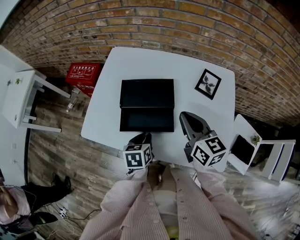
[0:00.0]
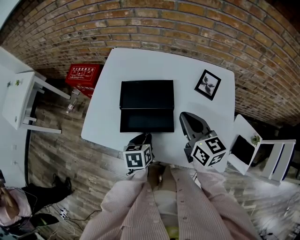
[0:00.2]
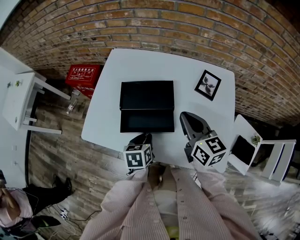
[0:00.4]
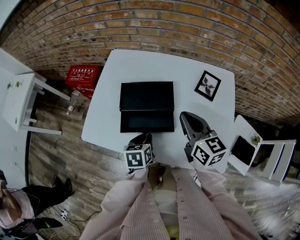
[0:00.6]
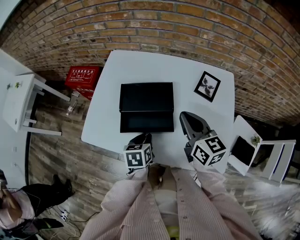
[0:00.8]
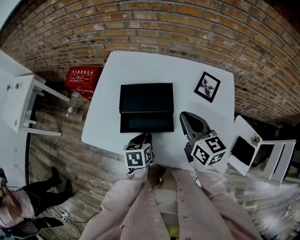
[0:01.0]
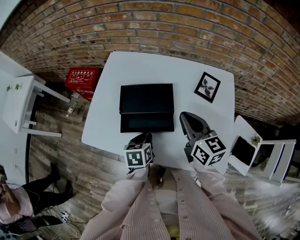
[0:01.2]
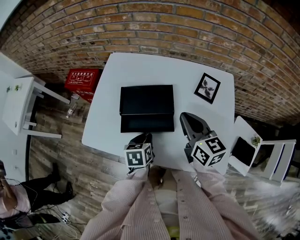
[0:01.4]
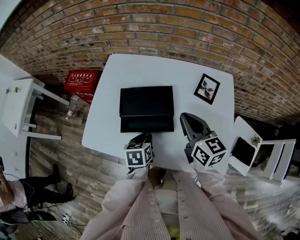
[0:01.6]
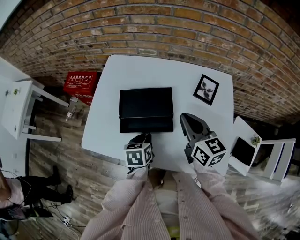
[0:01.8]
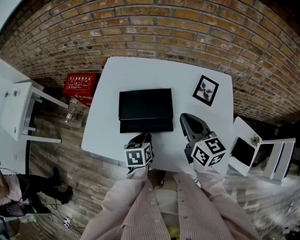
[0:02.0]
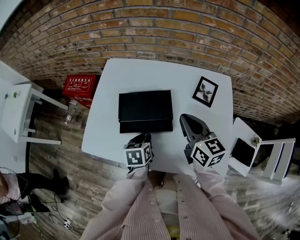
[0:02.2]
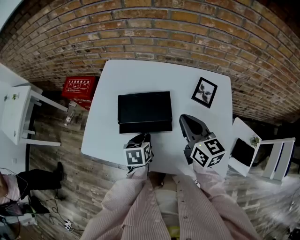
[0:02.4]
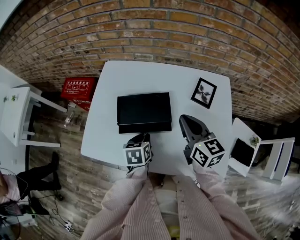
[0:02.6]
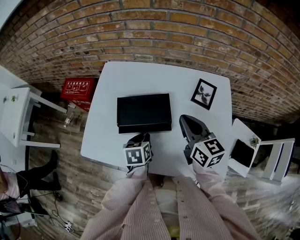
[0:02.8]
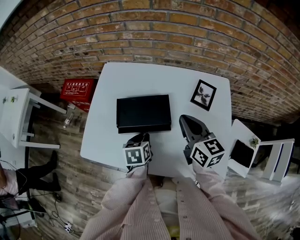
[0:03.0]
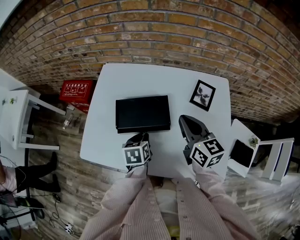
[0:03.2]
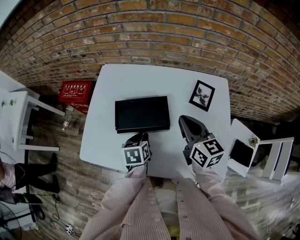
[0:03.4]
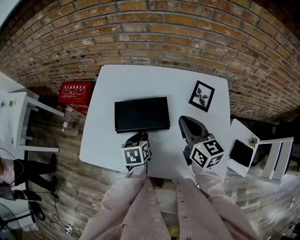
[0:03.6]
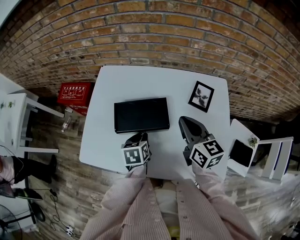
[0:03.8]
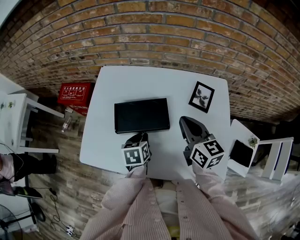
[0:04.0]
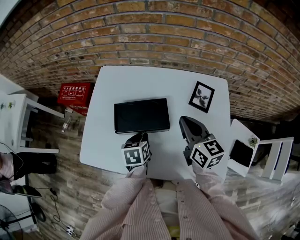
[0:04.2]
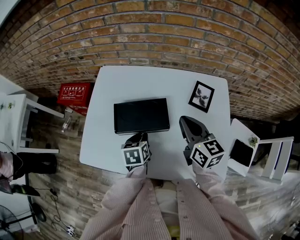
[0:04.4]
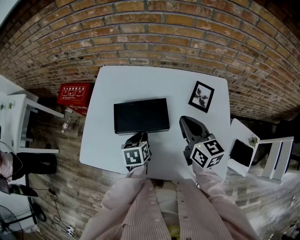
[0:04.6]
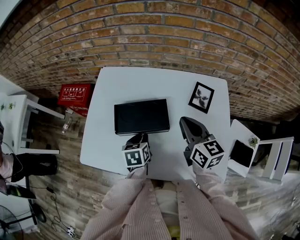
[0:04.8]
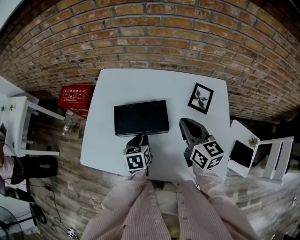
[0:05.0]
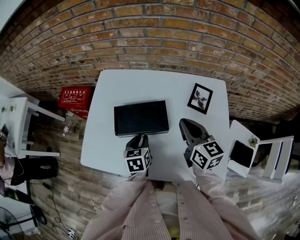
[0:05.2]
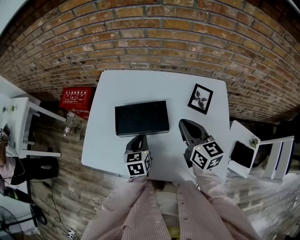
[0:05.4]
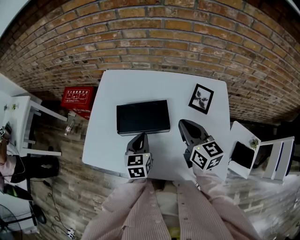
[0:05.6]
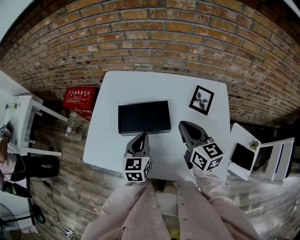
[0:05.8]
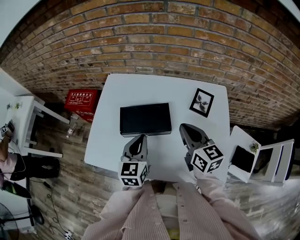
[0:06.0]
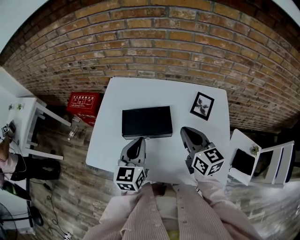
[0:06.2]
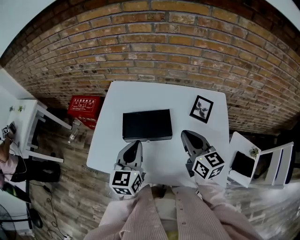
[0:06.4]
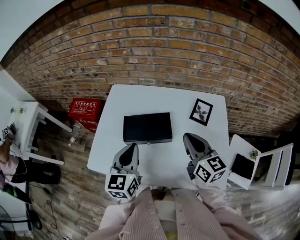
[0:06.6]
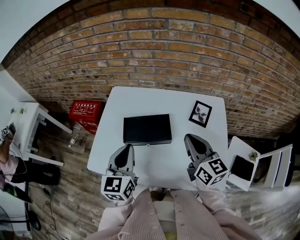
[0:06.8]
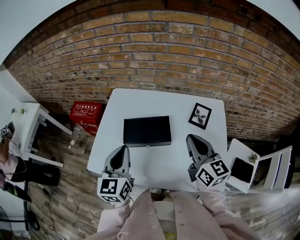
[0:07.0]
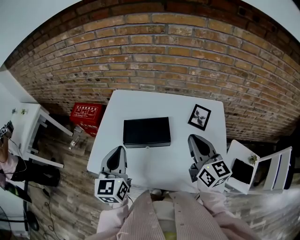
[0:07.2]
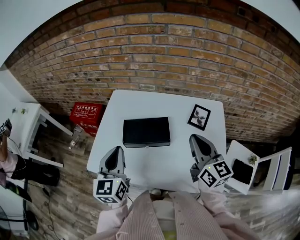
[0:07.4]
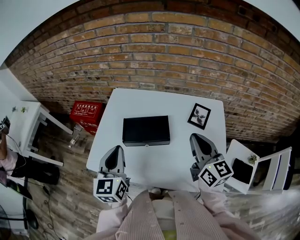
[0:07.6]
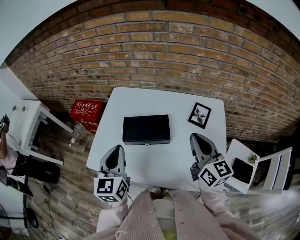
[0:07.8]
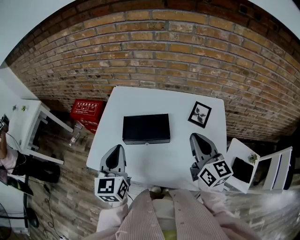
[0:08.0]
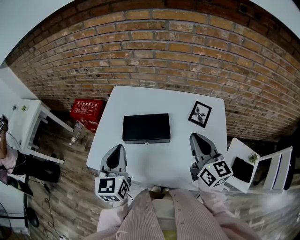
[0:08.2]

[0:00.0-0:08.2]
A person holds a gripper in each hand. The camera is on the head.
0:00.0 to 0:01.6: The grippers make only small movements.
0:01.6 to 0:03.2: The left gripper heads forward, covering roughly 5 cm.
0:03.2 to 0:05.0: There are only small adjustments of the grippers.
0:05.0 to 0:06.6: The left gripper heads upward, covering about 20 cm, and tips its fingers upward by roughly 30 degrees. Meanwhile the right gripper changes place by roughly 5 cm.
0:06.6 to 0:08.2: The left gripper ends up roughly 5 cm from where it was.

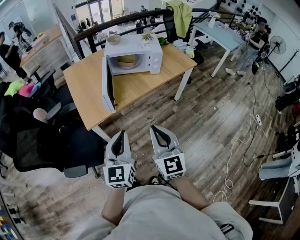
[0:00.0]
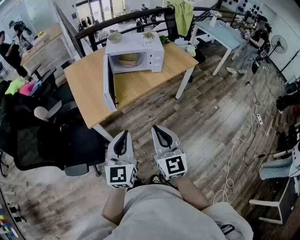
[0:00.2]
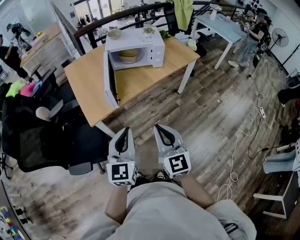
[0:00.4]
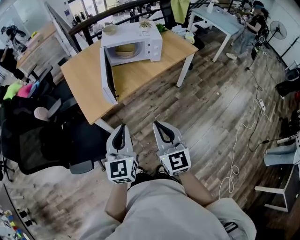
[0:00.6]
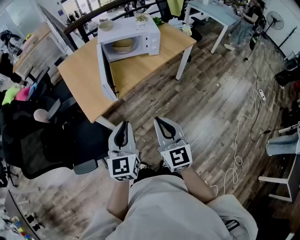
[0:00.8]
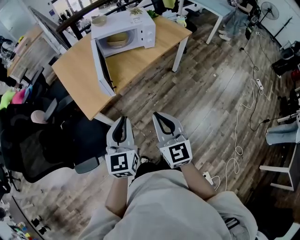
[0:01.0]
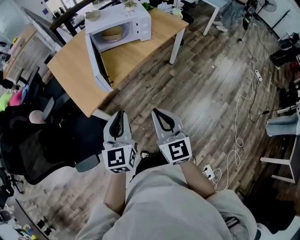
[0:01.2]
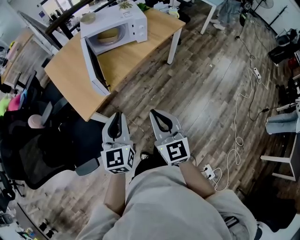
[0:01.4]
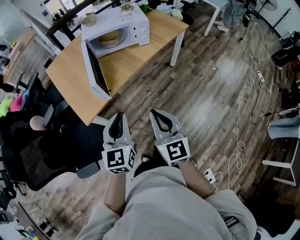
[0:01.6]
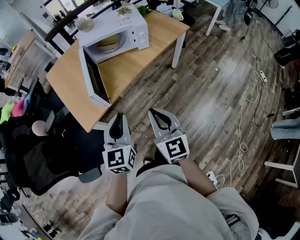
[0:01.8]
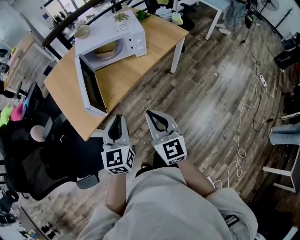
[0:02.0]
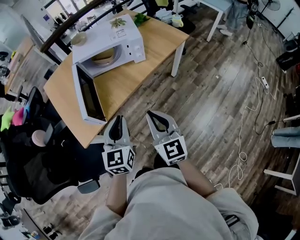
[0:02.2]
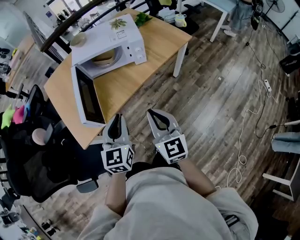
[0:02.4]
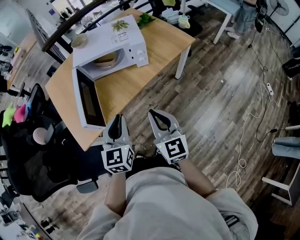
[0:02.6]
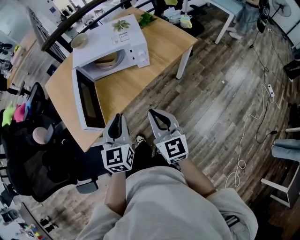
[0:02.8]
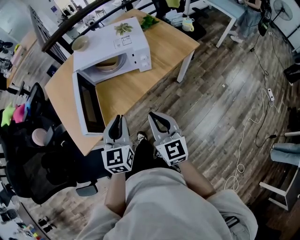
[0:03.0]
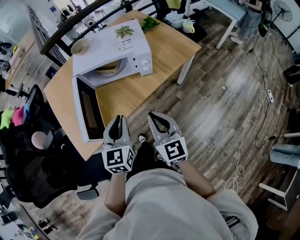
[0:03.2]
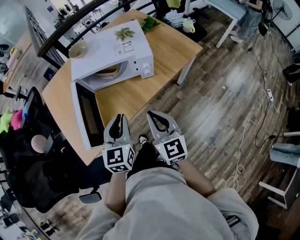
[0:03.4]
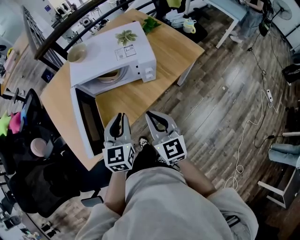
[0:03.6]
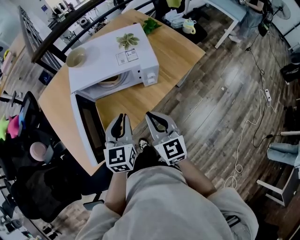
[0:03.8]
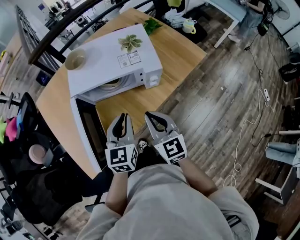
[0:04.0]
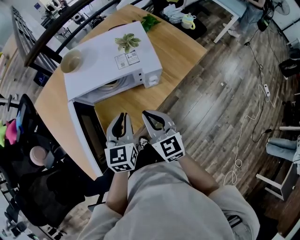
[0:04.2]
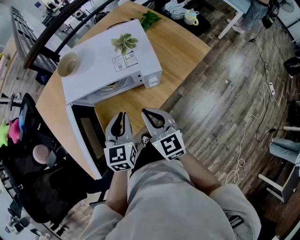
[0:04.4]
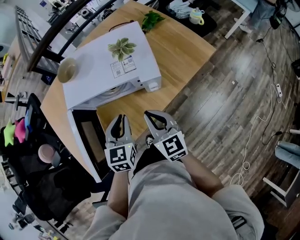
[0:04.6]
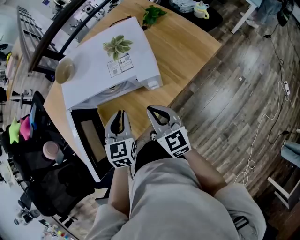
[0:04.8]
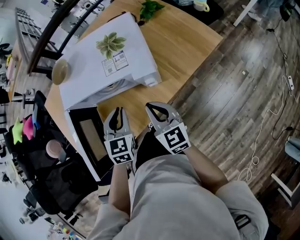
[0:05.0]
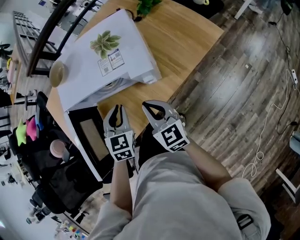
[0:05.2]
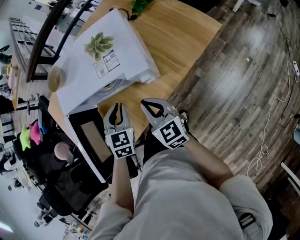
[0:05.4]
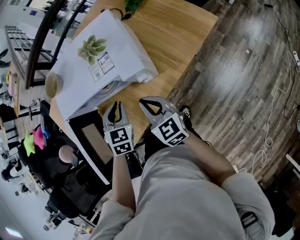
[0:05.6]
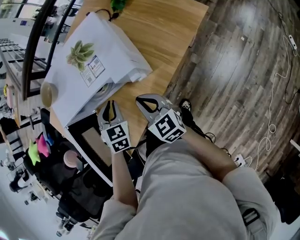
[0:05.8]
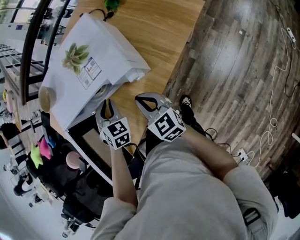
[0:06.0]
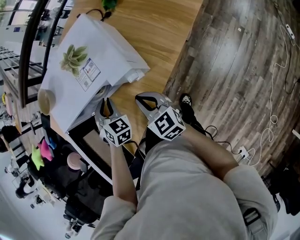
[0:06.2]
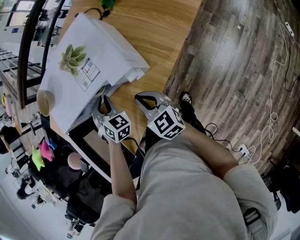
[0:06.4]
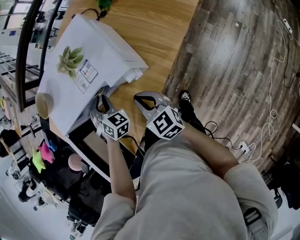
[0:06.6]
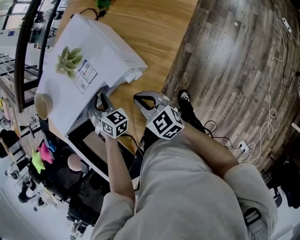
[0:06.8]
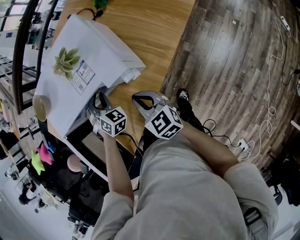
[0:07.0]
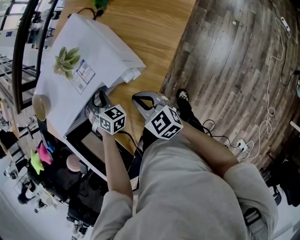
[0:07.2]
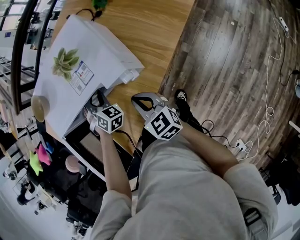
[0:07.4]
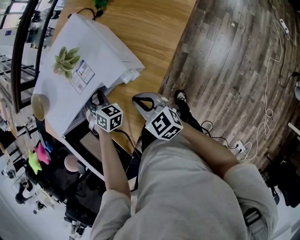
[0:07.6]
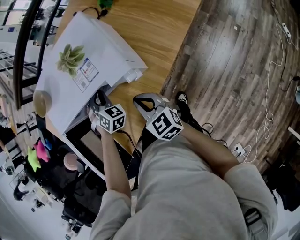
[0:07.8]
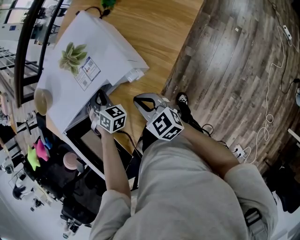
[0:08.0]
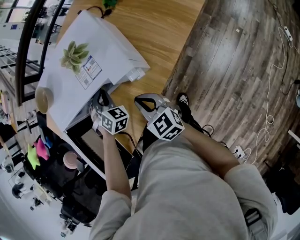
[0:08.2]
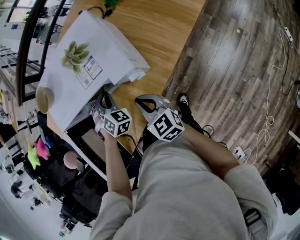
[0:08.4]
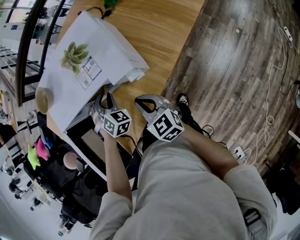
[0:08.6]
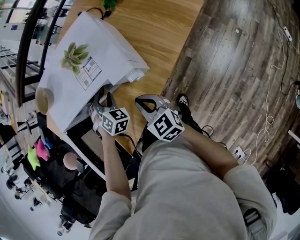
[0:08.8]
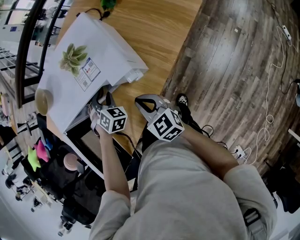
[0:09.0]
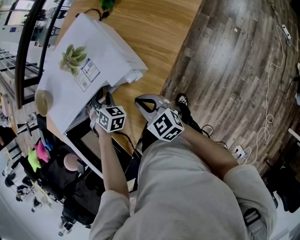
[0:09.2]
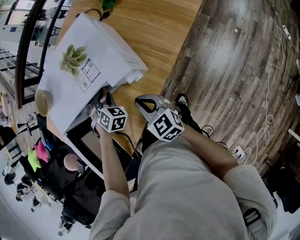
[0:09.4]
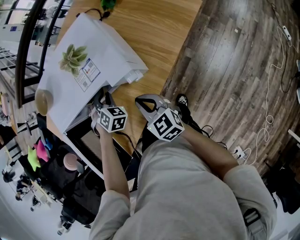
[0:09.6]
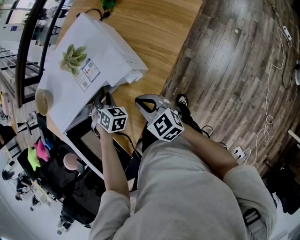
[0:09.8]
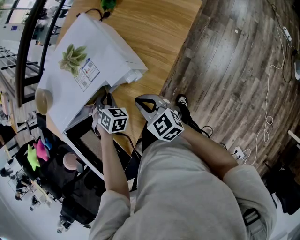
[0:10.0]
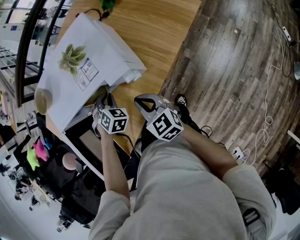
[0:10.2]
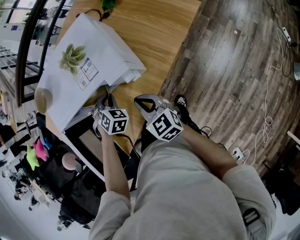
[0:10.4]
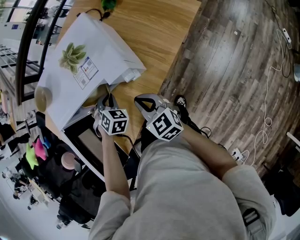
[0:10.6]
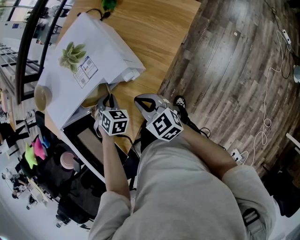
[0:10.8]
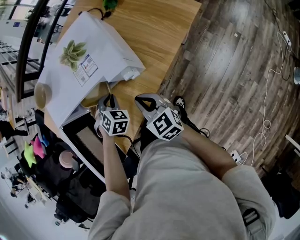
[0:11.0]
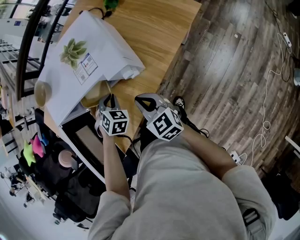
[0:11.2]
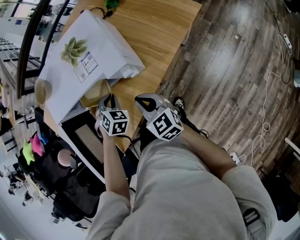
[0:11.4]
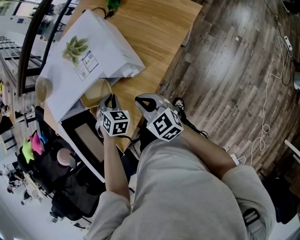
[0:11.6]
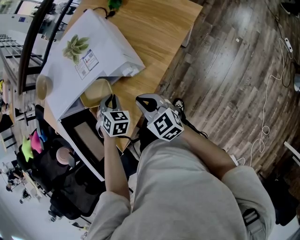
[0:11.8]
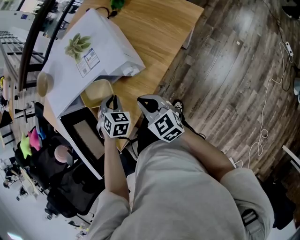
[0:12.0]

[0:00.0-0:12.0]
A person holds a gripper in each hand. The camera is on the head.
0:00.0 to 0:01.6: The left gripper is displaced forward and downward by about 10 cm. The right gripper shifts some 5 cm downward.
0:01.6 to 0:03.0: The two grippers go roughly 25 cm forward and to the right.
0:03.0 to 0:04.4: Both grippers move forward, some 20 cm.
0:04.4 to 0:06.0: The left gripper is displaced downward and forward by some 15 cm, and rotates some 40 degrees. Meanwhile the right gripper moves downward, roughly 10 cm.
0:06.0 to 0:07.6: The left gripper moves forward, some 5 cm.
0:07.6 to 0:09.0: The left gripper closes, then reopens.
0:09.0 to 0:10.4: The left gripper closes its fingers.
0:10.4 to 0:12.0: The left gripper heads backward, covering about 5 cm.

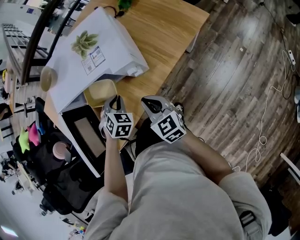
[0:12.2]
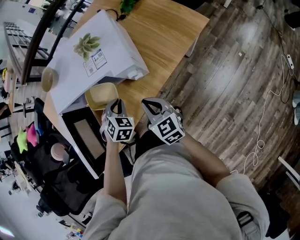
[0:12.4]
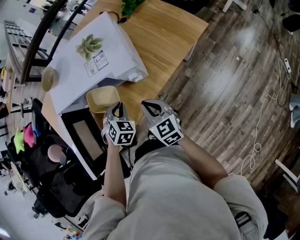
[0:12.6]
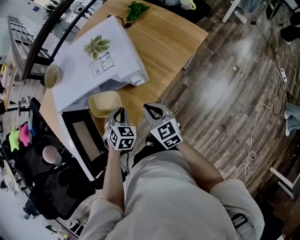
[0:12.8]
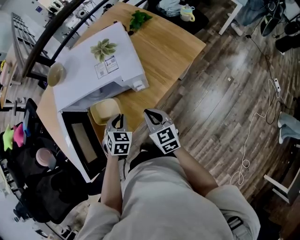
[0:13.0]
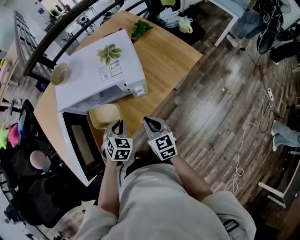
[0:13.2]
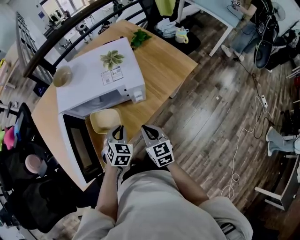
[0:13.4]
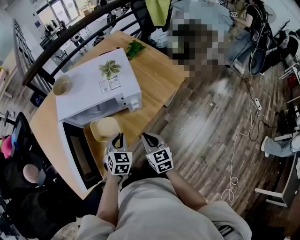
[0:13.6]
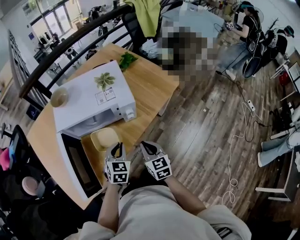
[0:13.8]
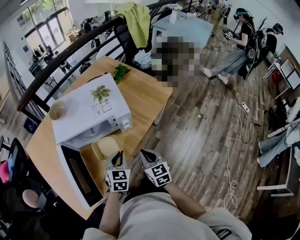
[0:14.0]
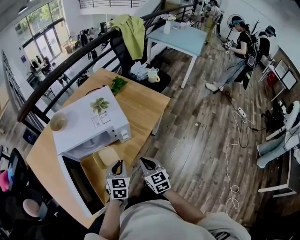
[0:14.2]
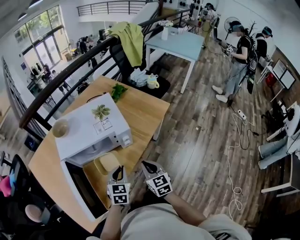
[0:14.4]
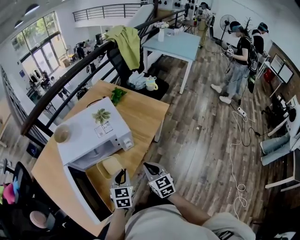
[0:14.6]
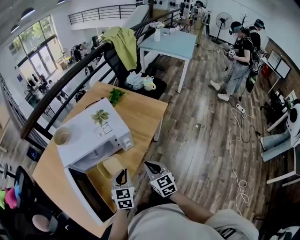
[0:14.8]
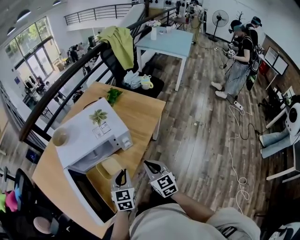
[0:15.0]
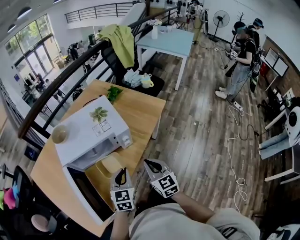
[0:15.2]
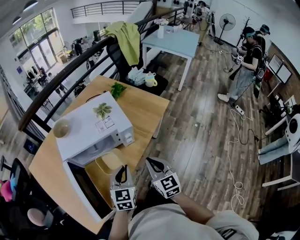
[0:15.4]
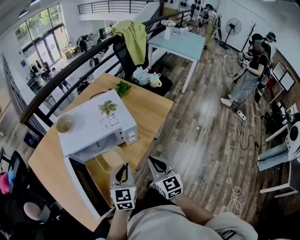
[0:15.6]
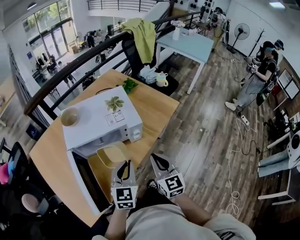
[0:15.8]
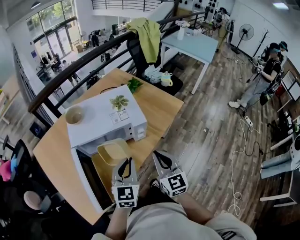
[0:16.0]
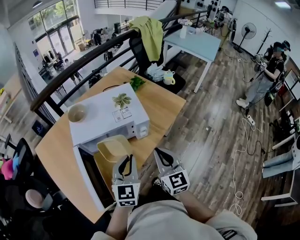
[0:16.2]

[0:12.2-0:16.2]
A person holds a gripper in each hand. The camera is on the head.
0:12.2 to 0:13.6: The left gripper goes roughly 10 cm backward and upward, and turns by roughly 30 degrees.
0:13.6 to 0:14.8: Both grippers travel together upward, roughly 5 cm.
0:14.8 to 0:16.2: The two grippers go roughly 10 cm upward.
